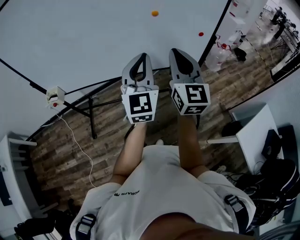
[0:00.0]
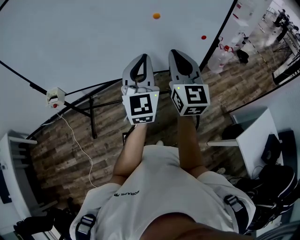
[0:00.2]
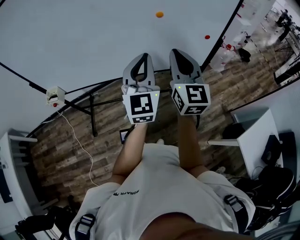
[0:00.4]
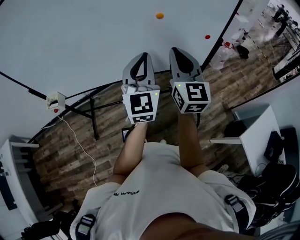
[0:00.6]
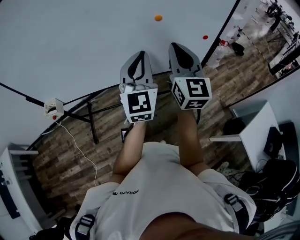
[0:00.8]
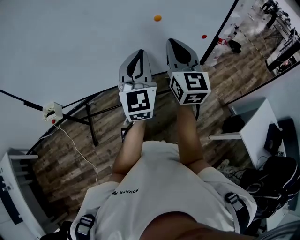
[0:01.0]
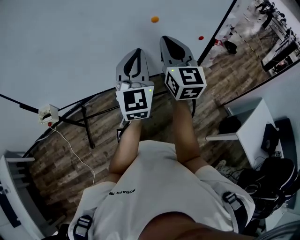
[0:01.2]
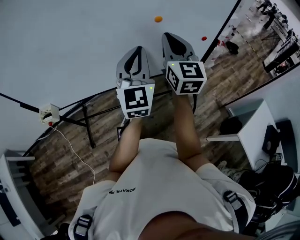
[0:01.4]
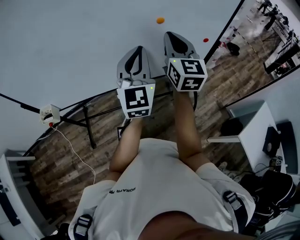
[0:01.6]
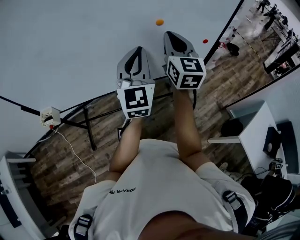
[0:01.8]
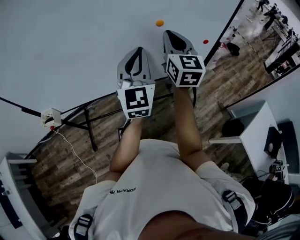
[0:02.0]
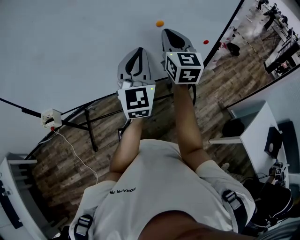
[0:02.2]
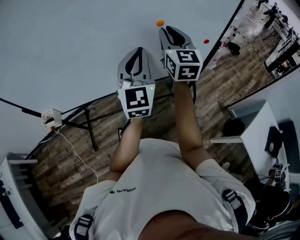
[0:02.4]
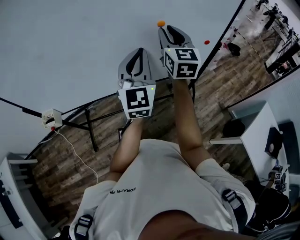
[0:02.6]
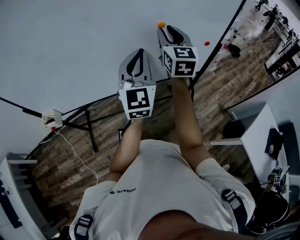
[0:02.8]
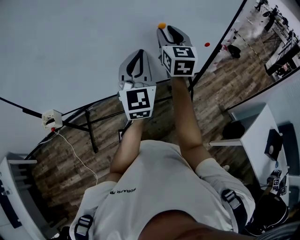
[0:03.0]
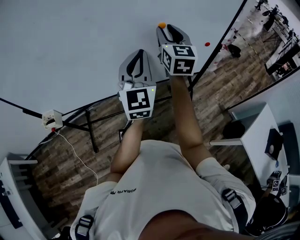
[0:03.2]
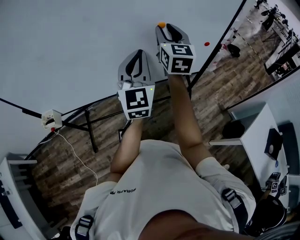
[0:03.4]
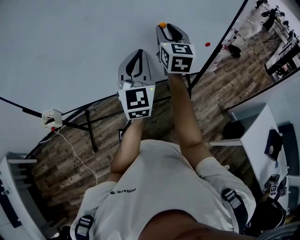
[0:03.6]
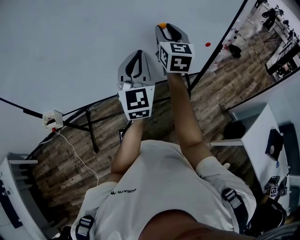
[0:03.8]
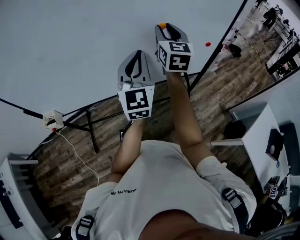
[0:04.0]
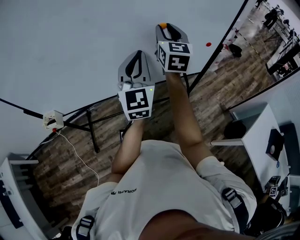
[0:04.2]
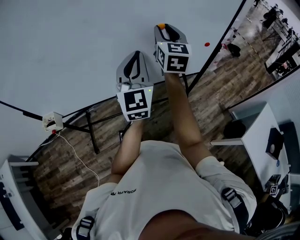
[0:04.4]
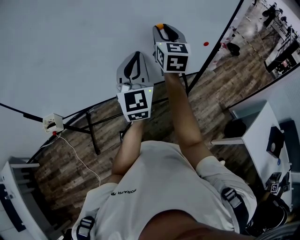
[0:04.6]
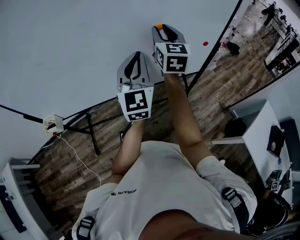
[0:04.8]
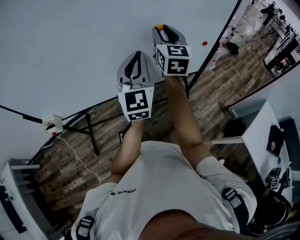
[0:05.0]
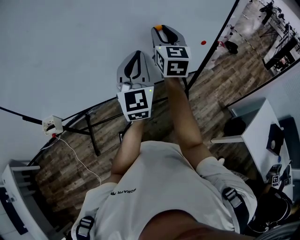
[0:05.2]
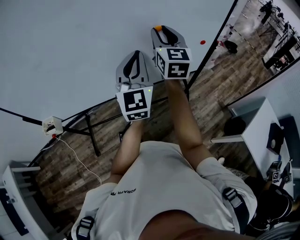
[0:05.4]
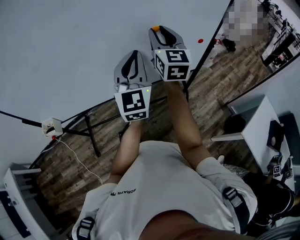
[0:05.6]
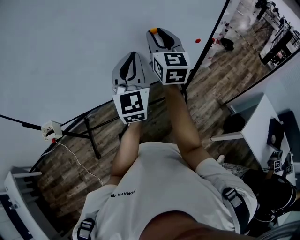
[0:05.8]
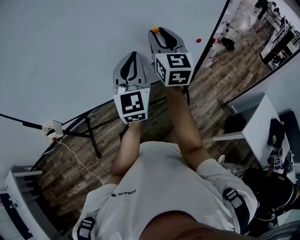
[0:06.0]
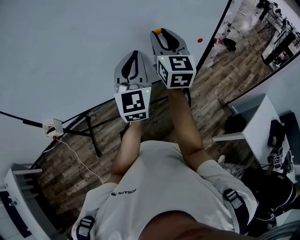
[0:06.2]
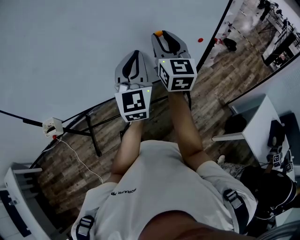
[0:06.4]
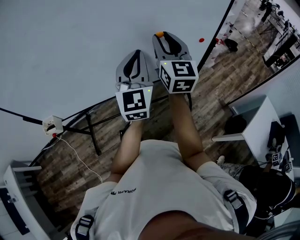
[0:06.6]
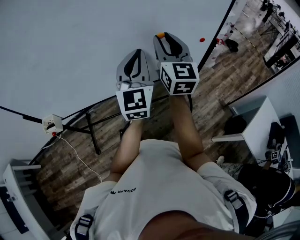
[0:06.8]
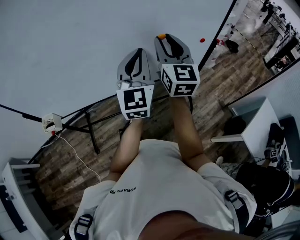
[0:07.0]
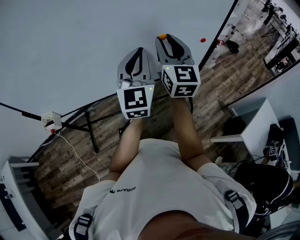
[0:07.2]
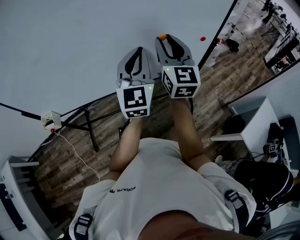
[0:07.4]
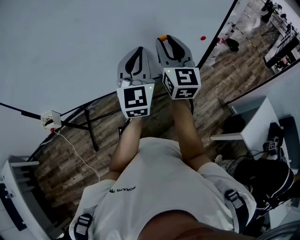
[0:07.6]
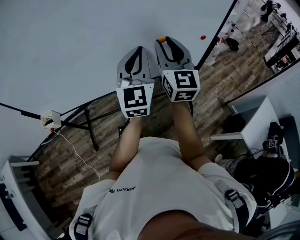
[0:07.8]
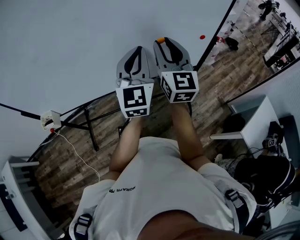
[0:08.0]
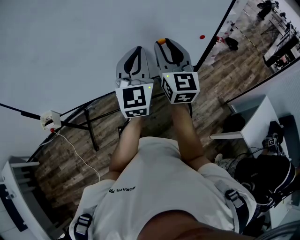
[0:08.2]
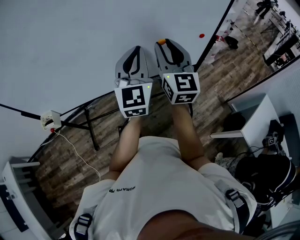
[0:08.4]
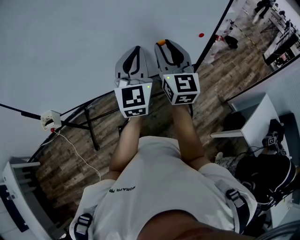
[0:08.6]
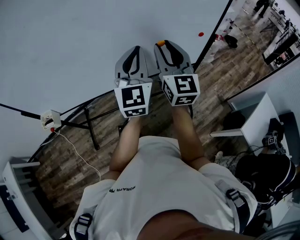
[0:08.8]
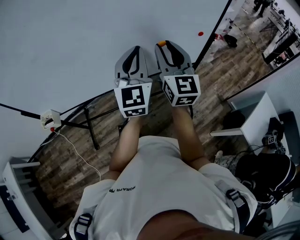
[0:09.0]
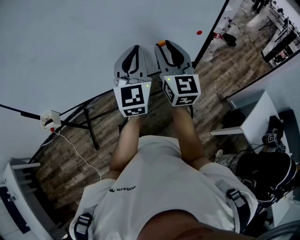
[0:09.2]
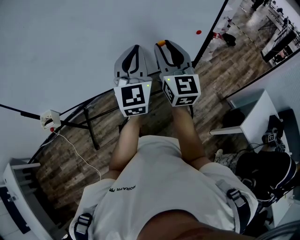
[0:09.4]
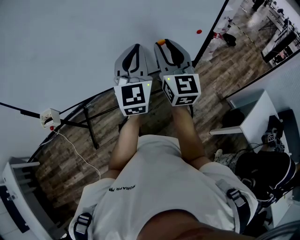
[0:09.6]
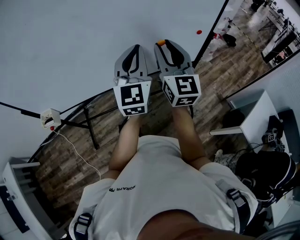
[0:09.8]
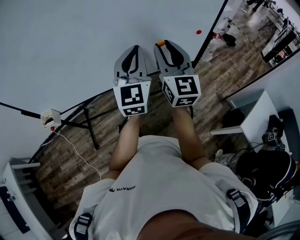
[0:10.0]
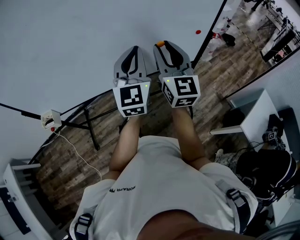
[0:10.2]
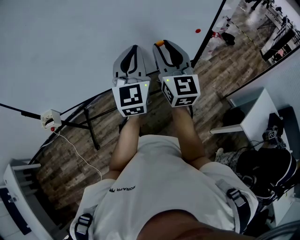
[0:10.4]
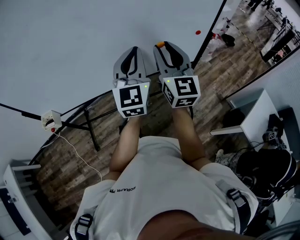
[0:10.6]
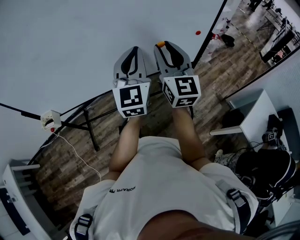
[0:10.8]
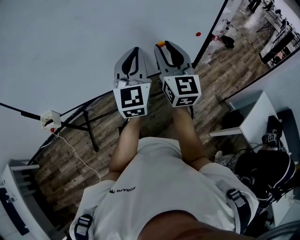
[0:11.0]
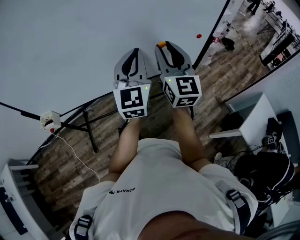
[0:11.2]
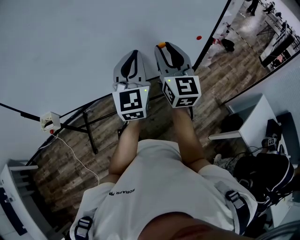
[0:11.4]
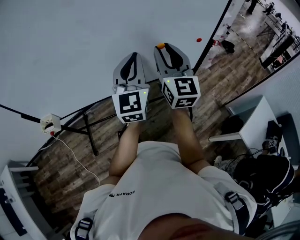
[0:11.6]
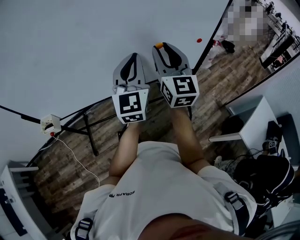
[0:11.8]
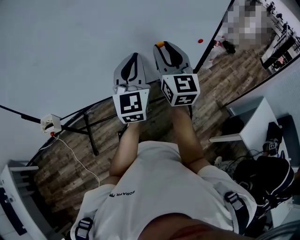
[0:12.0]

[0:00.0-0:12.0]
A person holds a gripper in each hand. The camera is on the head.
0:00.0 to 0:01.6: The two grippers go about 15 cm forward.
0:01.6 to 0:03.0: The right gripper travels forward by roughly 5 cm, and opens.
0:03.0 to 0:04.4: There are only small adjustments of the grippers.
0:04.4 to 0:06.0: The right gripper ends up approximately 5 cm from where it was.
0:06.0 to 0:07.6: The right gripper moves some 5 cm.
0:07.6 to 0:12.0: The grippers move only a little.

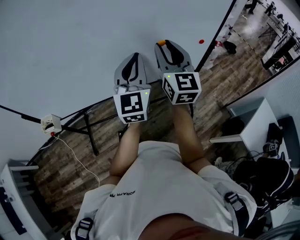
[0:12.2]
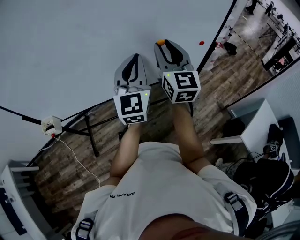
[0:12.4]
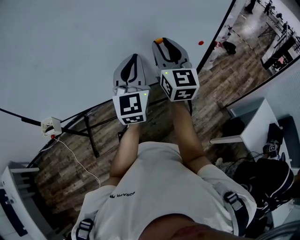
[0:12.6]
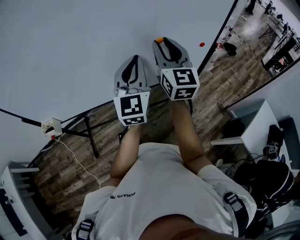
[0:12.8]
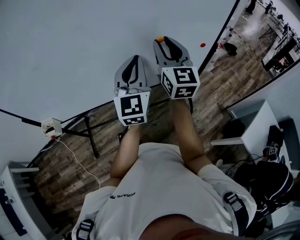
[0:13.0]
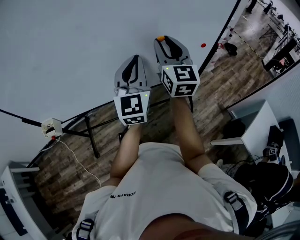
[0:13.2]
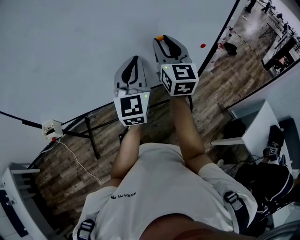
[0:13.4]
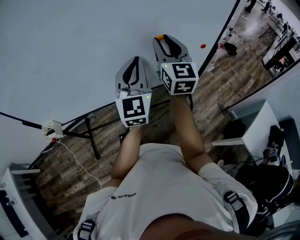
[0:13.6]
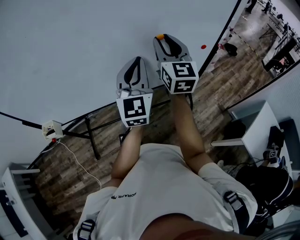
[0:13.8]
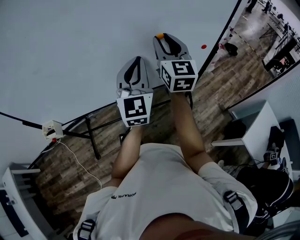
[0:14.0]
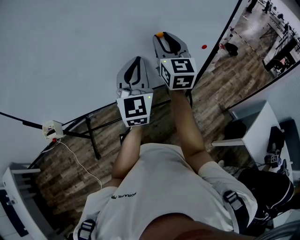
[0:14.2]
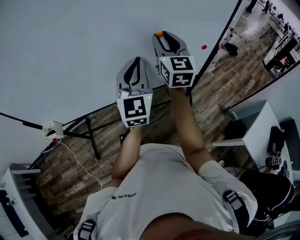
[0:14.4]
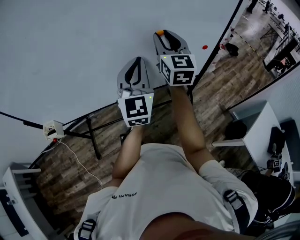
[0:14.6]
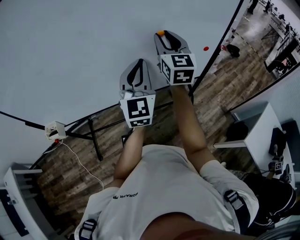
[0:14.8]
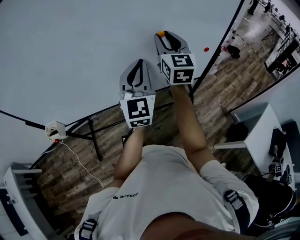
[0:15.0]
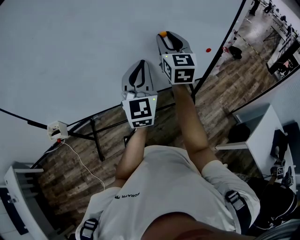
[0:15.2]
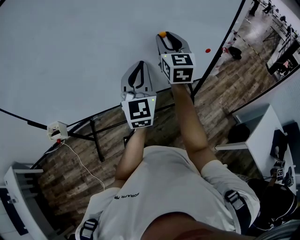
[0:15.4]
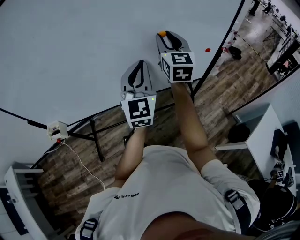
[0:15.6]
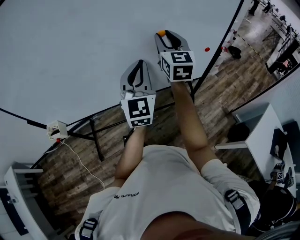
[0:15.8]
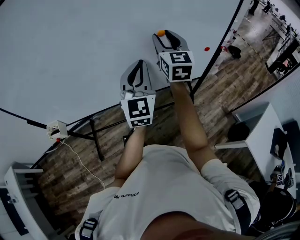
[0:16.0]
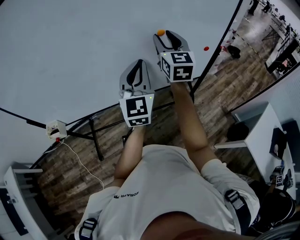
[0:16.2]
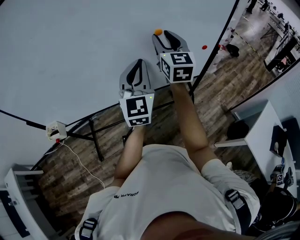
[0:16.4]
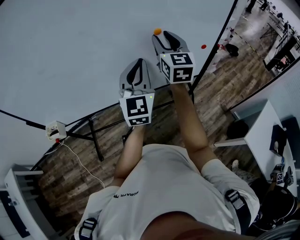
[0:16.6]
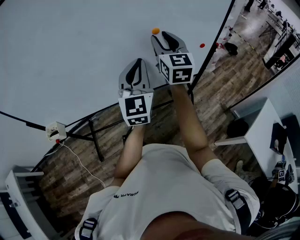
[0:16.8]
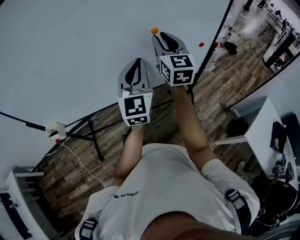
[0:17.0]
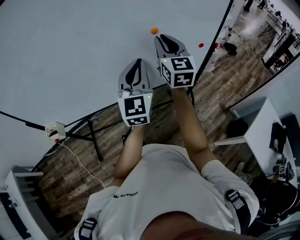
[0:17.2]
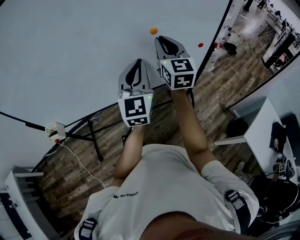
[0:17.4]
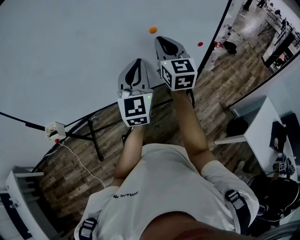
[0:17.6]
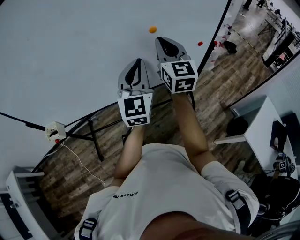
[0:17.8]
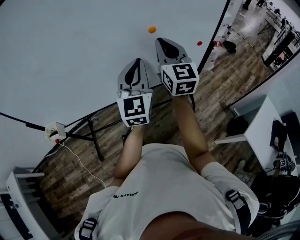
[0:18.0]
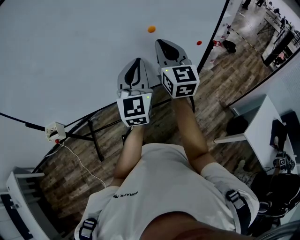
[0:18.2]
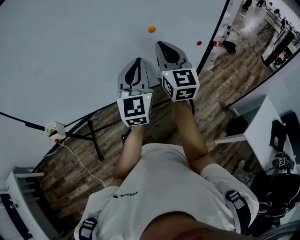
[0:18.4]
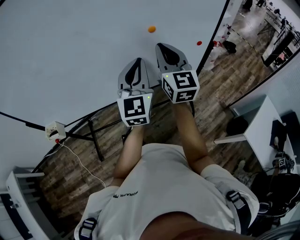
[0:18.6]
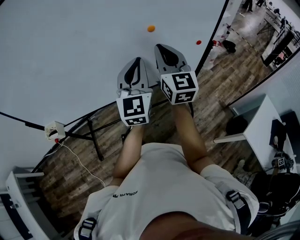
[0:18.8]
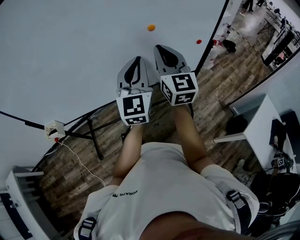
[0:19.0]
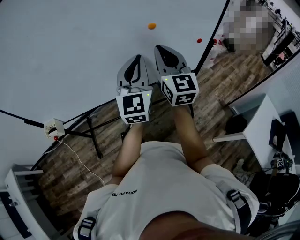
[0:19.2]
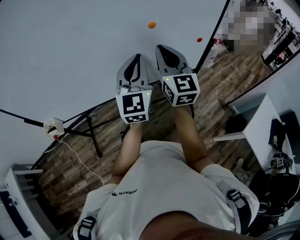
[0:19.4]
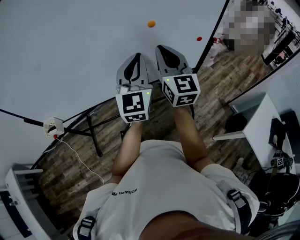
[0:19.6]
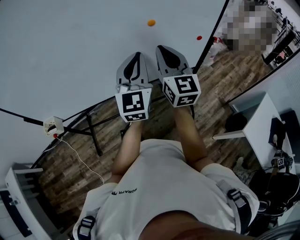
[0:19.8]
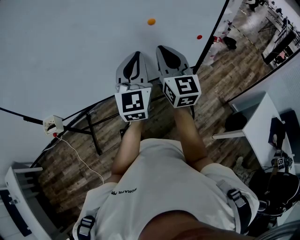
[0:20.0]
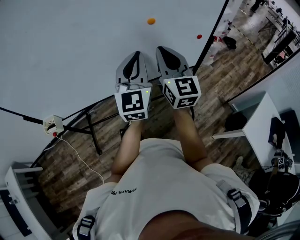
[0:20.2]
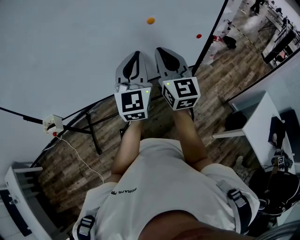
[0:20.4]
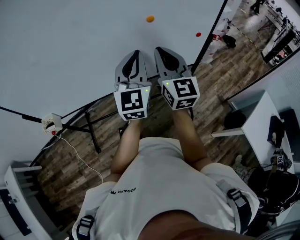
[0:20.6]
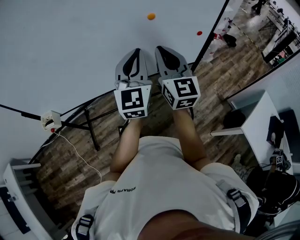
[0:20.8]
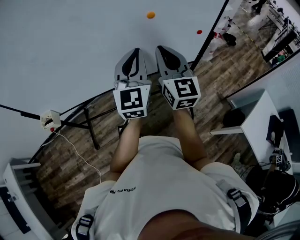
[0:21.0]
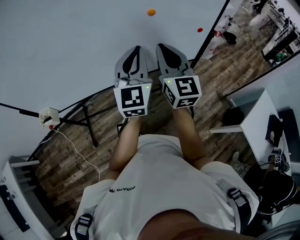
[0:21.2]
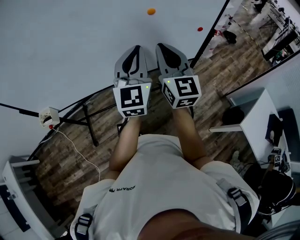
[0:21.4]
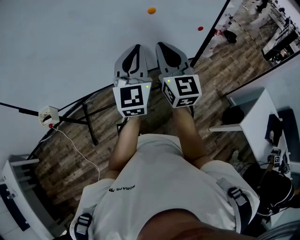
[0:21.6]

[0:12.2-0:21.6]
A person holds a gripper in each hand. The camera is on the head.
0:12.2 to 0:13.8: The right gripper heads forward, covering roughly 5 cm.
0:13.8 to 0:17.0: The grippers move only a little.
0:17.0 to 0:18.4: The right gripper is displaced backward by some 5 cm, and closes up.
0:18.4 to 0:20.0: The grippers stay close to where they were, moving slightly.
0:20.0 to 0:21.6: The grippers make only small movements.

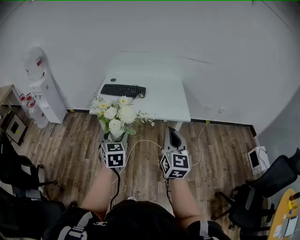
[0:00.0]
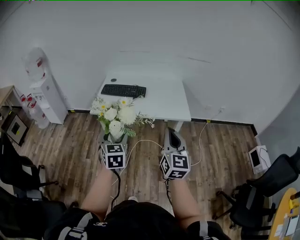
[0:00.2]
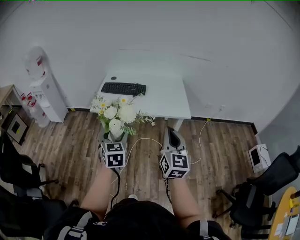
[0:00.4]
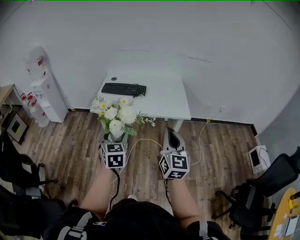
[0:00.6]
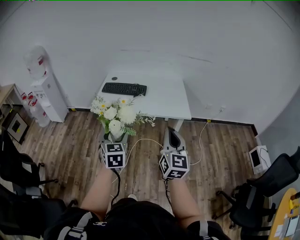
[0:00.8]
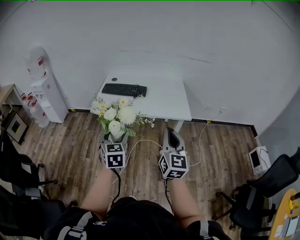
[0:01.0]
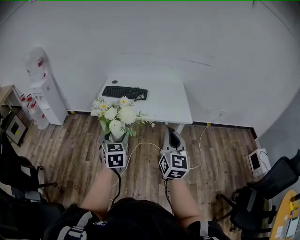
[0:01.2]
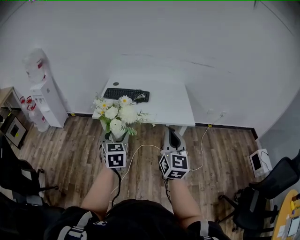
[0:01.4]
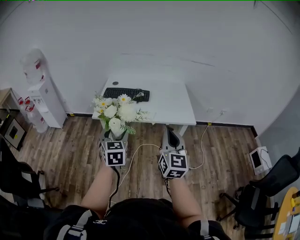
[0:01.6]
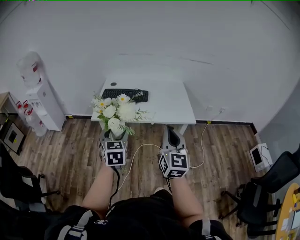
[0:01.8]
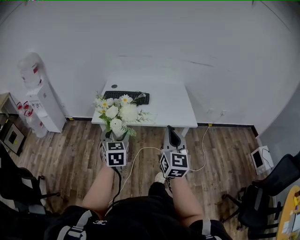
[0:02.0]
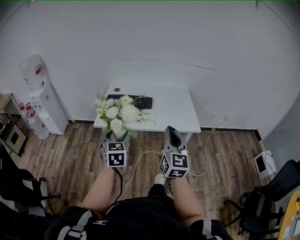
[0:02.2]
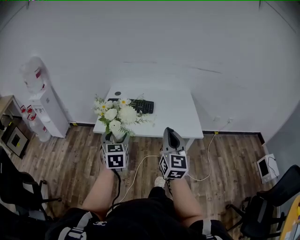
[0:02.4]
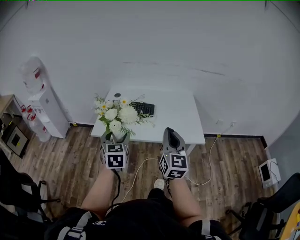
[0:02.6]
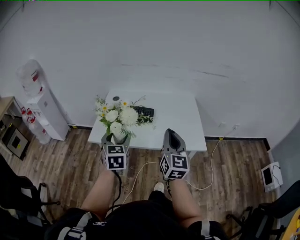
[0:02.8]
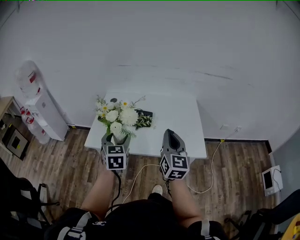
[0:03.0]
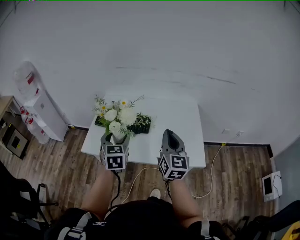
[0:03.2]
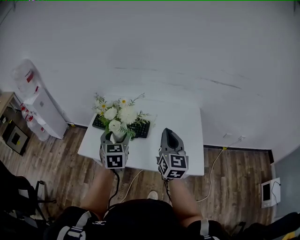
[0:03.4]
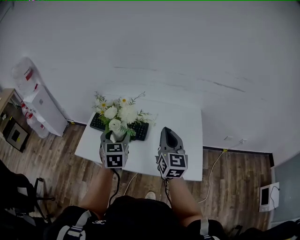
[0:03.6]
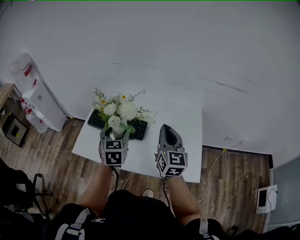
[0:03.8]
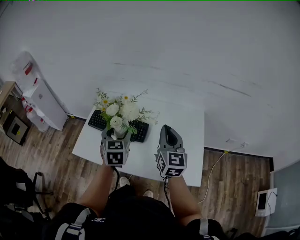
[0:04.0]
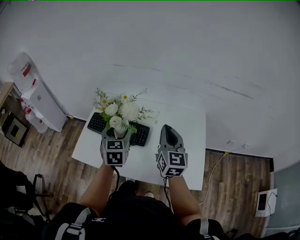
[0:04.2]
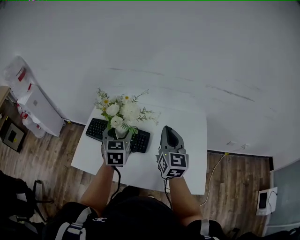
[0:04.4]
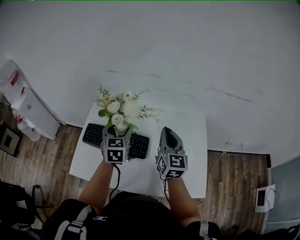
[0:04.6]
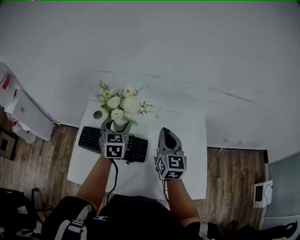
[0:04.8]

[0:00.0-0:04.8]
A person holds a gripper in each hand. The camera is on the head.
0:00.0 to 0:01.6: The right gripper is displaced to the left by approximately 5 cm. Meanwhile the left gripper is displaced to the left and forward by about 10 cm.
0:01.6 to 0:03.2: The two grippers travel together, forward, some 40 cm.
0:03.2 to 0:04.8: The grippers both shift forward by some 40 cm.
